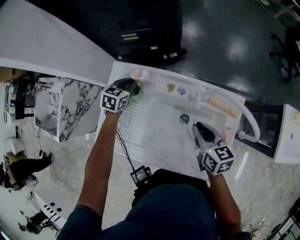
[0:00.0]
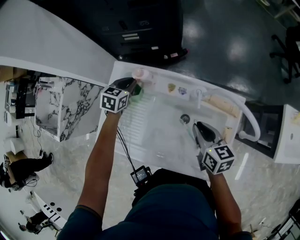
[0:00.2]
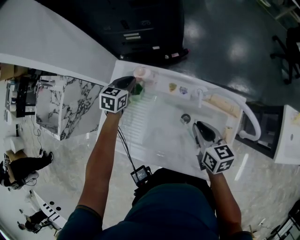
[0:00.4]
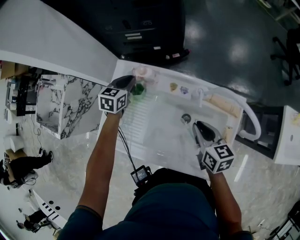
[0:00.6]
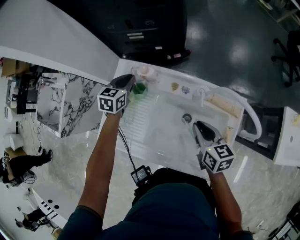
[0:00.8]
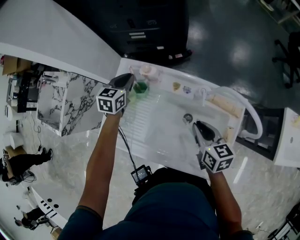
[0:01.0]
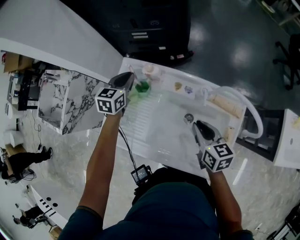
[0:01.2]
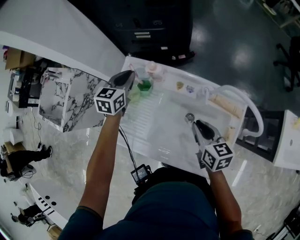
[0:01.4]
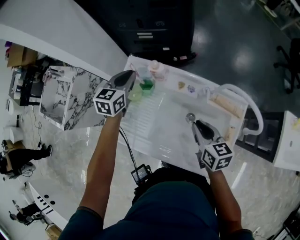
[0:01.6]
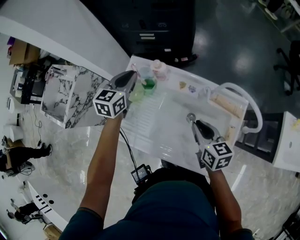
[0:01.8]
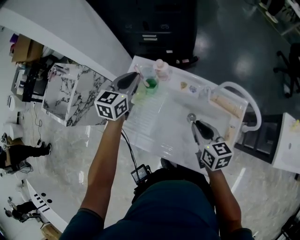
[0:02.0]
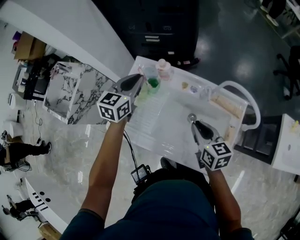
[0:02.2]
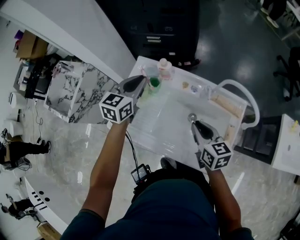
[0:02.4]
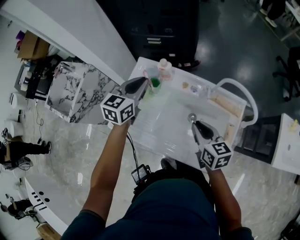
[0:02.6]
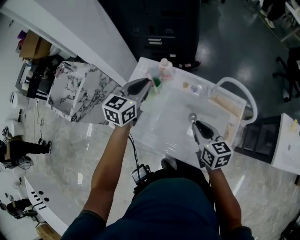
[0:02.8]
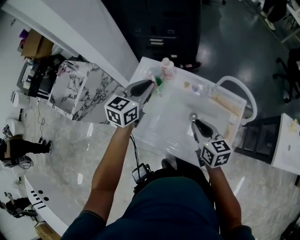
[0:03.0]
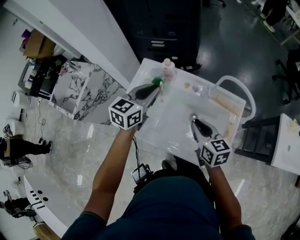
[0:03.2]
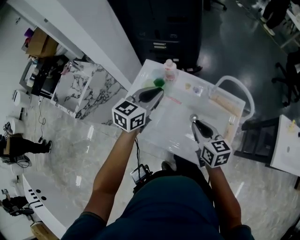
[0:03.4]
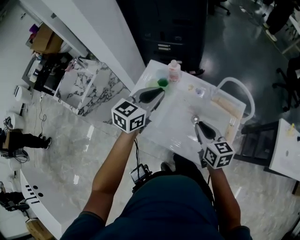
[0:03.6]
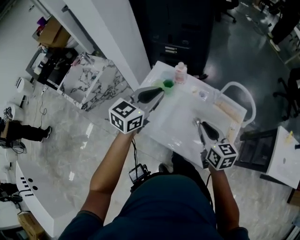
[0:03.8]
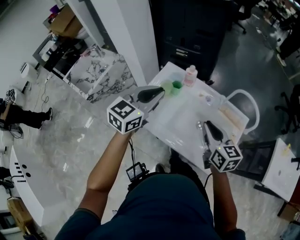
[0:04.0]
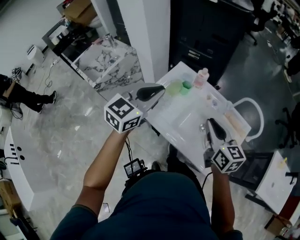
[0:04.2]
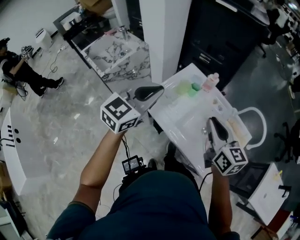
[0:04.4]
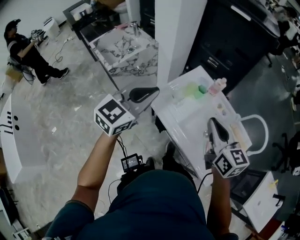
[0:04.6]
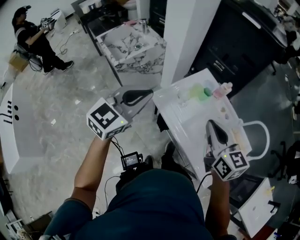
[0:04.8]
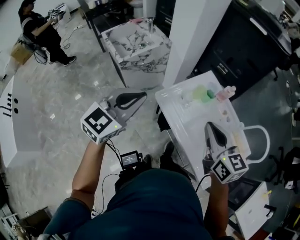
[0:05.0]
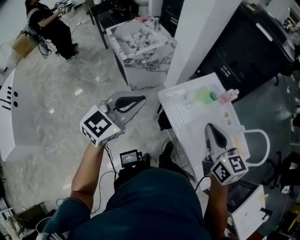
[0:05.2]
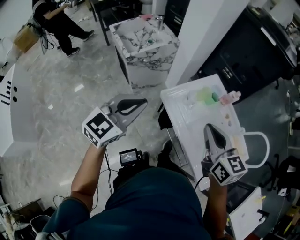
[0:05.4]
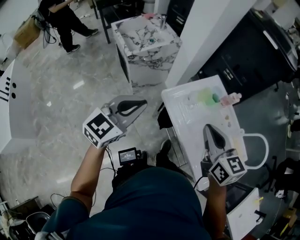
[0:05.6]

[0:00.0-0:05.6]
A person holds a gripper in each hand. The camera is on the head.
0:00.0 to 0:01.4: The left gripper travels upward by some 10 cm, and swivels about 20 degrees.
0:01.4 to 0:02.8: The left gripper moves backward and upward, roughly 15 cm. Meanwhile the right gripper shifts by roughly 5 cm.
0:02.8 to 0:04.2: The right gripper travels upward and to the left by approximately 15 cm, while the left gripper is displaced backward, upward and to the left by some 25 cm.
0:04.2 to 0:05.6: The left gripper shifts approximately 25 cm to the left and backward. The right gripper heads to the left, covering roughly 20 cm, and turns by some 30 degrees.

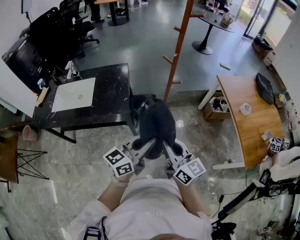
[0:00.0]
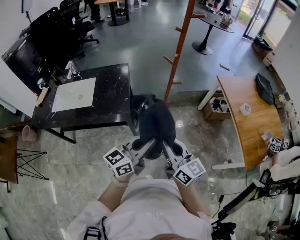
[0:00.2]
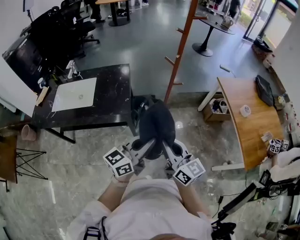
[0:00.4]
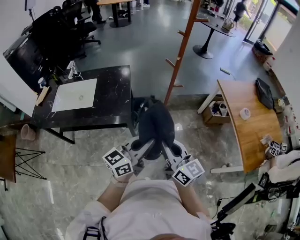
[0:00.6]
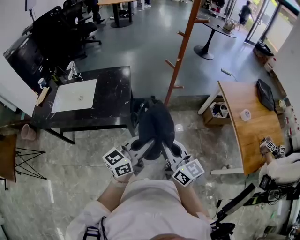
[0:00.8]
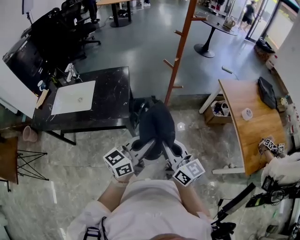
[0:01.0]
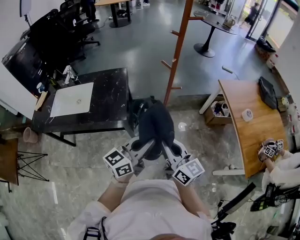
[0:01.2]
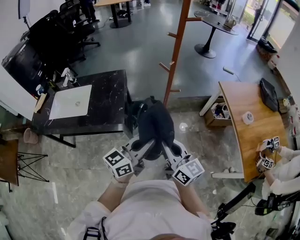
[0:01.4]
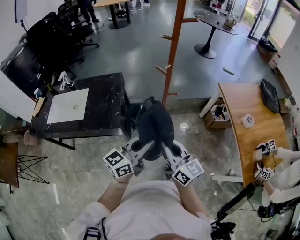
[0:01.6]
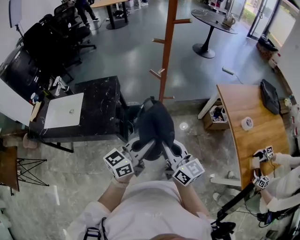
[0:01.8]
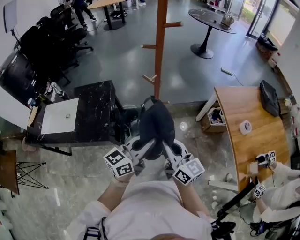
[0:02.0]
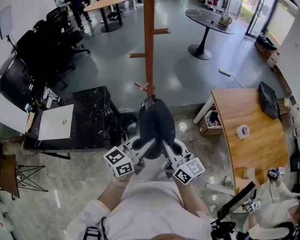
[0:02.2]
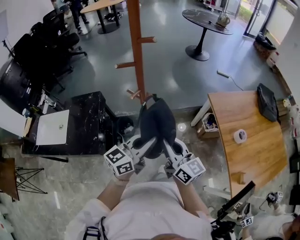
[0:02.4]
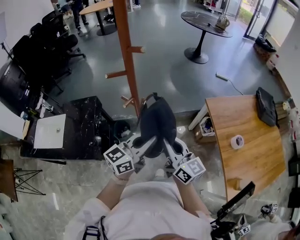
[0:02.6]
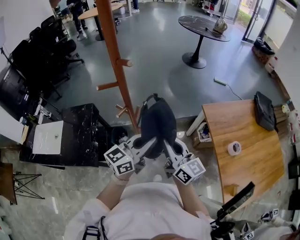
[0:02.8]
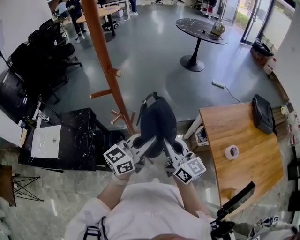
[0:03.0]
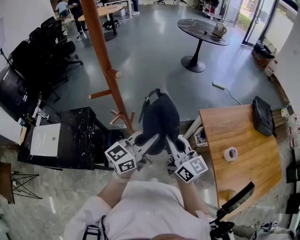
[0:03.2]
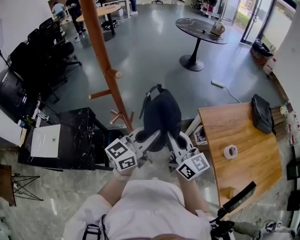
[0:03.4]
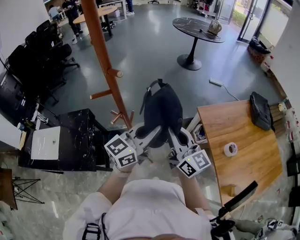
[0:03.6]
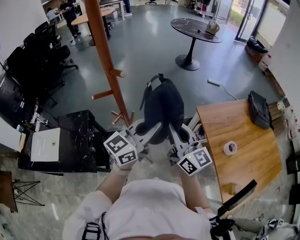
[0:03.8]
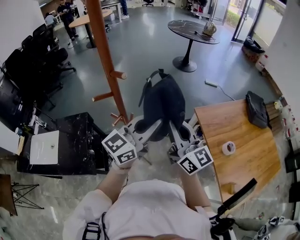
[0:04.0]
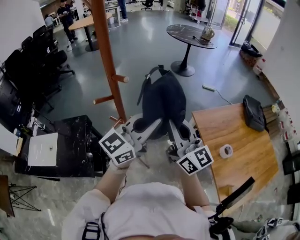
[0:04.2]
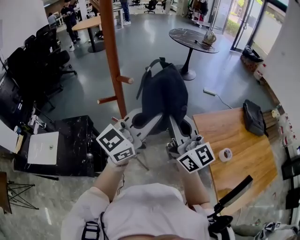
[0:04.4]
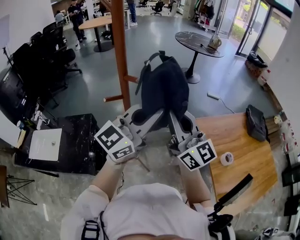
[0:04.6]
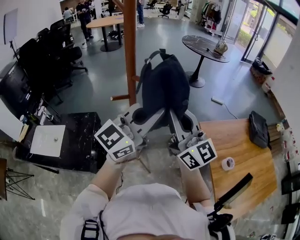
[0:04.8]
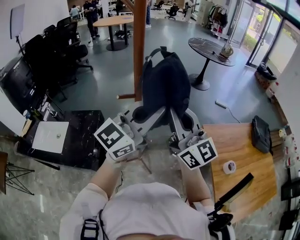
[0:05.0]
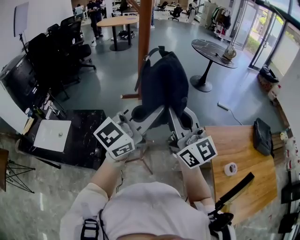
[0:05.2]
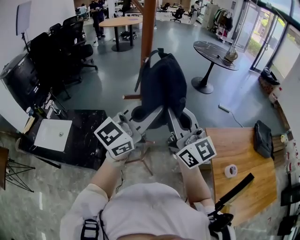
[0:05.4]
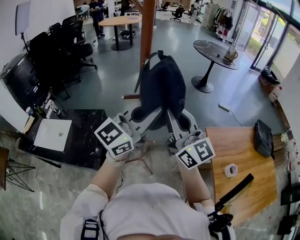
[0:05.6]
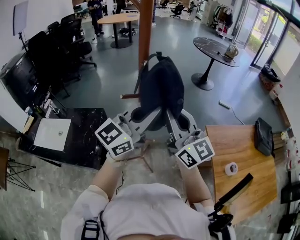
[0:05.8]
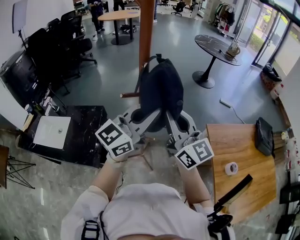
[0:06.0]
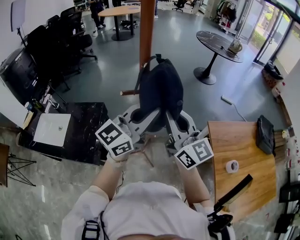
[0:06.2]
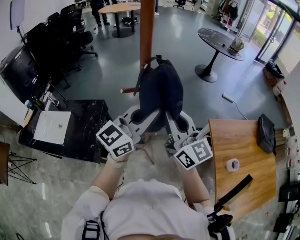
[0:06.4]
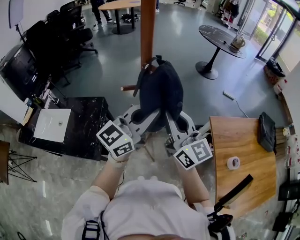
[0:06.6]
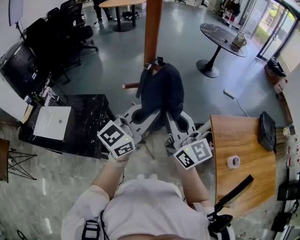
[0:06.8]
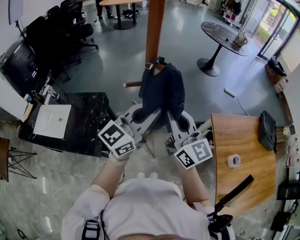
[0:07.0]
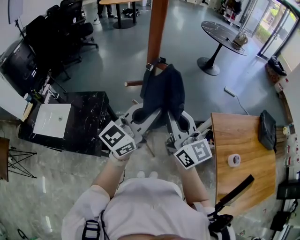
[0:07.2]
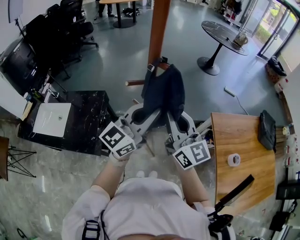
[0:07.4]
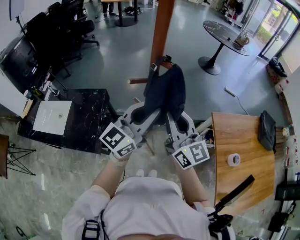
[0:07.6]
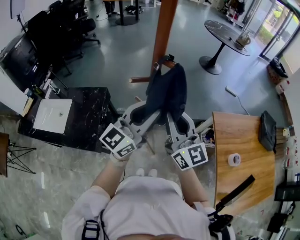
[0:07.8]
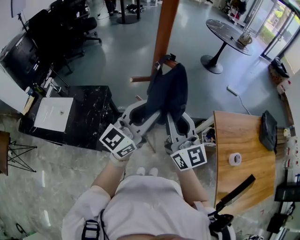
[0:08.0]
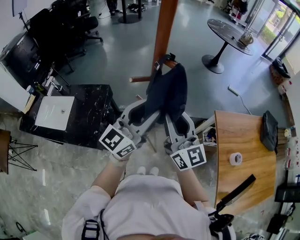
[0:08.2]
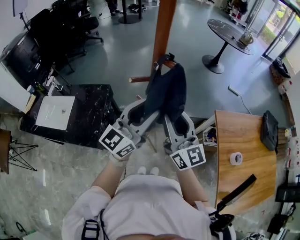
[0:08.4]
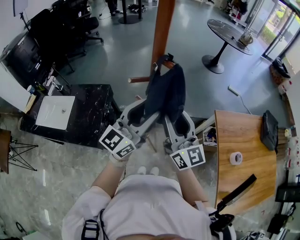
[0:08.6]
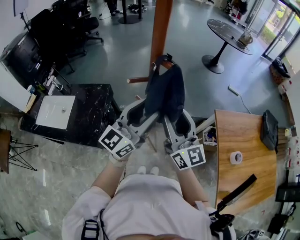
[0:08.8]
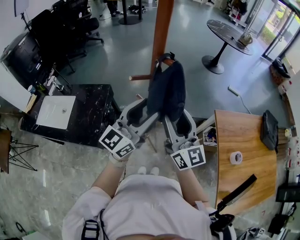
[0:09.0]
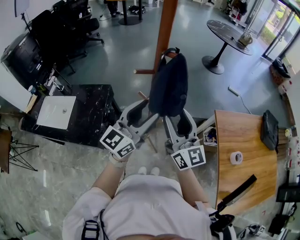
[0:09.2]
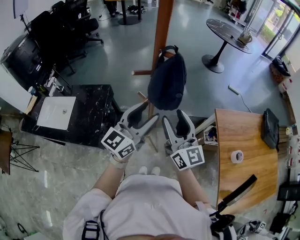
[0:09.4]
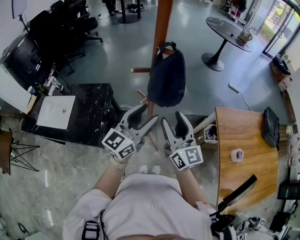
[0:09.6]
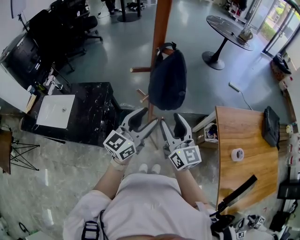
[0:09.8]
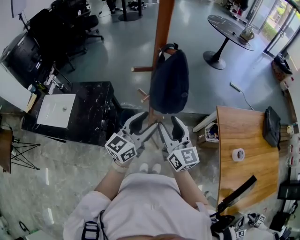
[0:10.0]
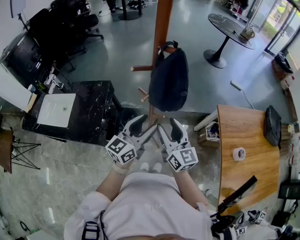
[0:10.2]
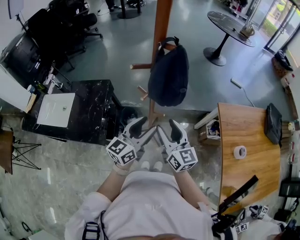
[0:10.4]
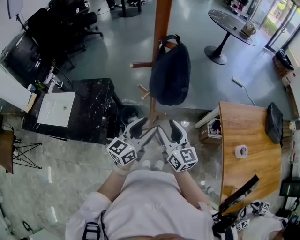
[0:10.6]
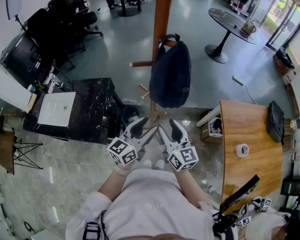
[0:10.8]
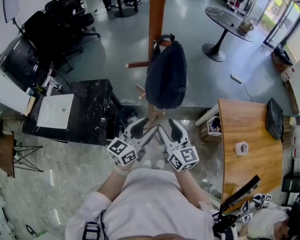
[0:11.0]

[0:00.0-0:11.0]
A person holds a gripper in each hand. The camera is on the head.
0:00.0 to 0:01.6: Both grippers travel together forward and to the right, about 15 cm.
0:01.6 to 0:03.2: The pair of grippers is taken forward and to the right, approximately 40 cm.
0:03.2 to 0:04.8: Both grippers travel together upward, some 20 cm. The left gripper turns by approximately 20 degrees, while the right gripper turns by roughly 20 degrees.
0:04.8 to 0:06.2: The two grippers go approximately 10 cm to the left and downward.
0:06.2 to 0:07.8: Both grippers travel together downward, about 5 cm.
0:07.8 to 0:09.4: The left gripper shifts by about 5 cm, and opens its fingers, while the right gripper ends up some 5 cm from where it was, and opens its fingers.
0:09.4 to 0:11.0: Both grippers travel together downward, roughly 15 cm.

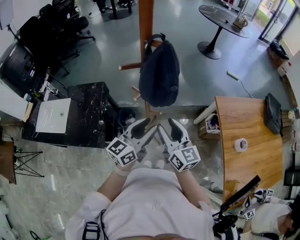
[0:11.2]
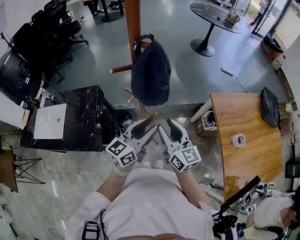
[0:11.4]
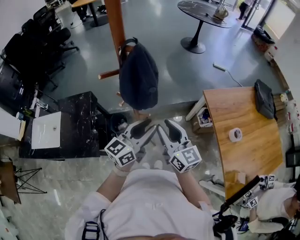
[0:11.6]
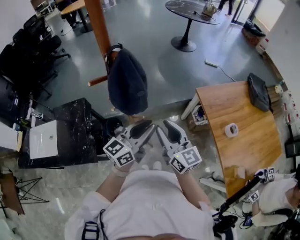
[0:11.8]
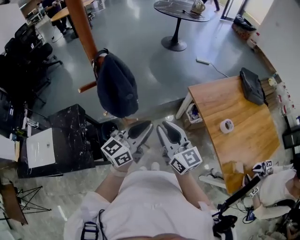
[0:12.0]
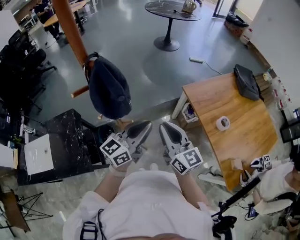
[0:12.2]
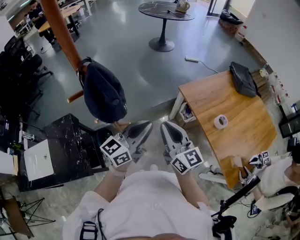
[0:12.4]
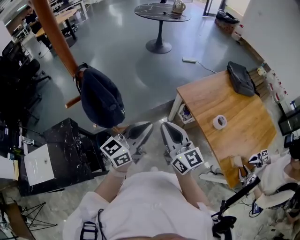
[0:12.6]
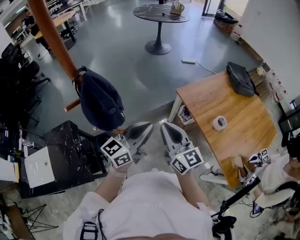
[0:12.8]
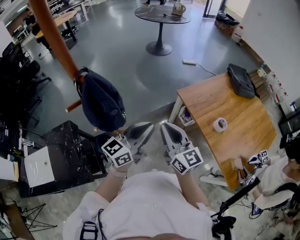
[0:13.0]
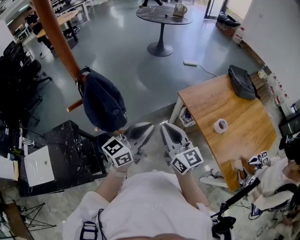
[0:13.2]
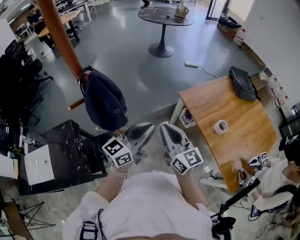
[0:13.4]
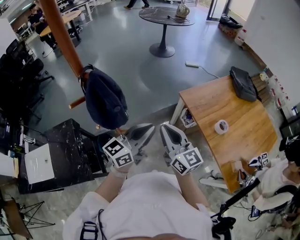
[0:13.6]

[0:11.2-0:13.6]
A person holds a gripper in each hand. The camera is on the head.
0:11.2 to 0:12.4: Both grippers travel together to the right and upward, about 15 cm. The left gripper turns by about 30 degrees, and closes, while the right gripper closes.
0:12.4 to 0:13.6: There are only small adjustments of the grippers.

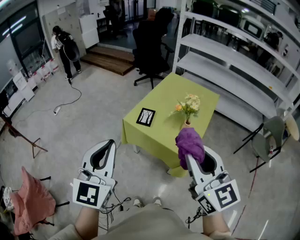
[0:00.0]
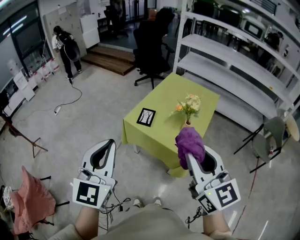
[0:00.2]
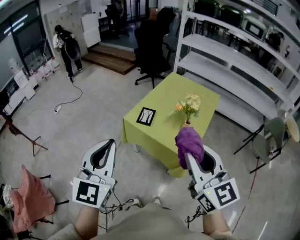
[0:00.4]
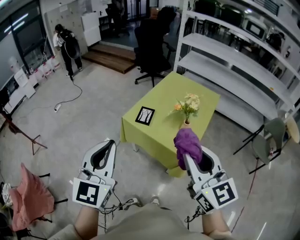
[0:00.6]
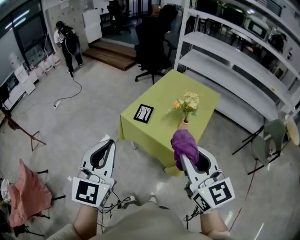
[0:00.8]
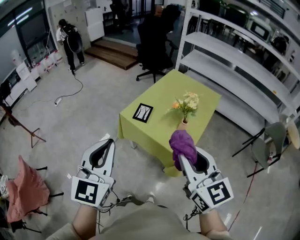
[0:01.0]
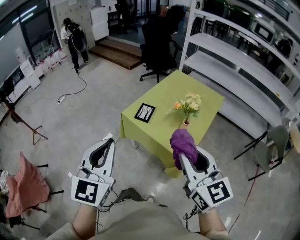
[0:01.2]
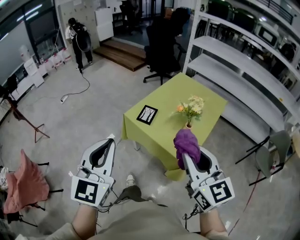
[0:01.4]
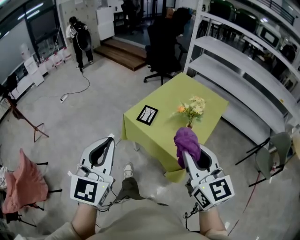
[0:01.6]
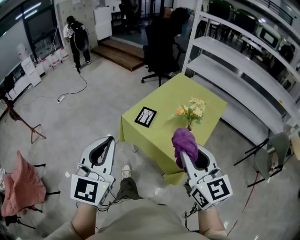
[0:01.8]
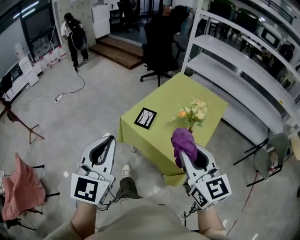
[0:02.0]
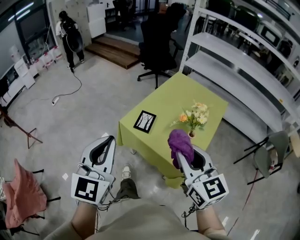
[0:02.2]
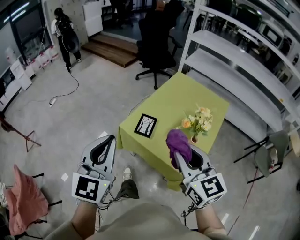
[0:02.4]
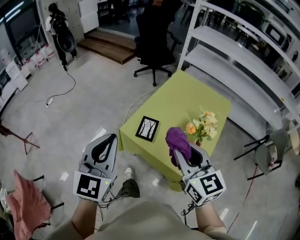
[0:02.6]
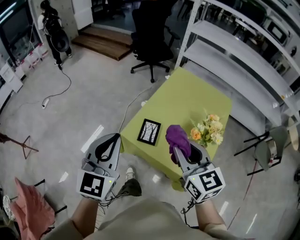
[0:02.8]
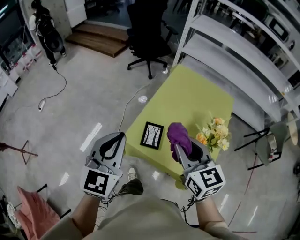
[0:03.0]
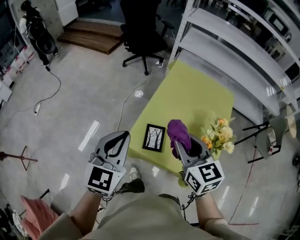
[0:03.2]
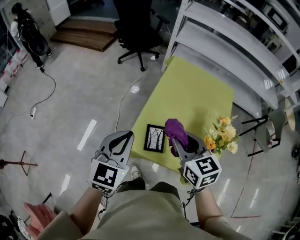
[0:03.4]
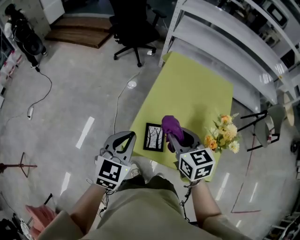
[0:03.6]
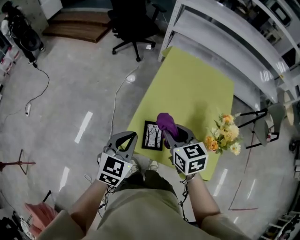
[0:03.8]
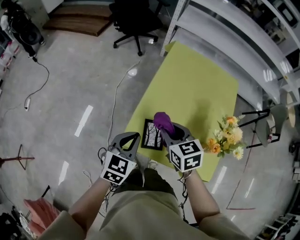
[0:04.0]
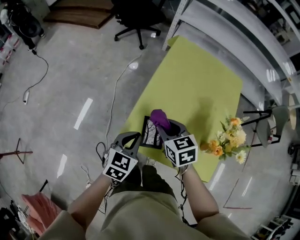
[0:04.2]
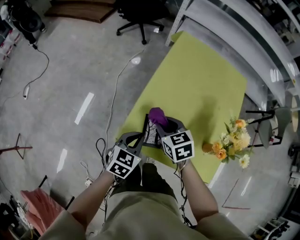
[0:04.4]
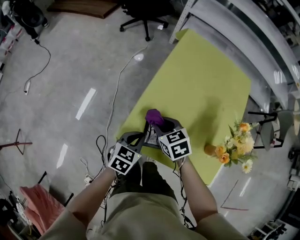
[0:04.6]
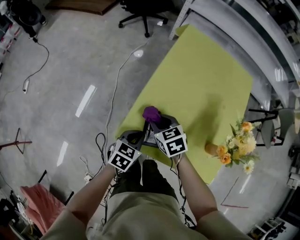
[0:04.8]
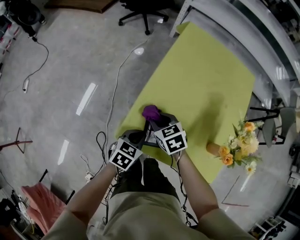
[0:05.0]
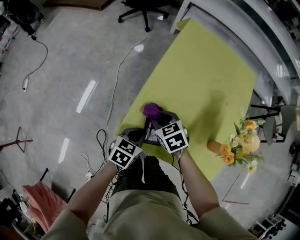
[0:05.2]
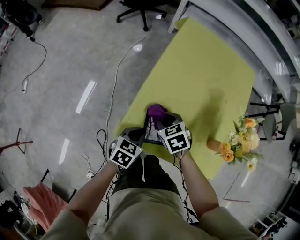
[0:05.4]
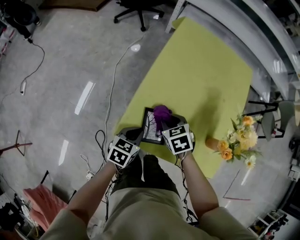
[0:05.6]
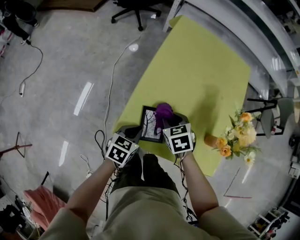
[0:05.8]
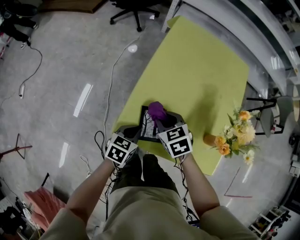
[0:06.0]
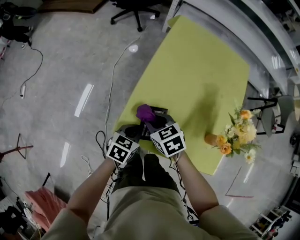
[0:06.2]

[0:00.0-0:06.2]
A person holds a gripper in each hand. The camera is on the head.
0:00.0 to 0:01.6: The left gripper moves approximately 5 cm, while the right gripper heads downward and forward, covering about 10 cm.
0:01.6 to 0:03.2: The two grippers go some 40 cm forward. The right gripper changes its angle by roughly 20 degrees. The left gripper swivels some 30 degrees.
0:03.2 to 0:04.6: The grippers both shift downward by roughly 30 cm. The left gripper changes its angle by some 40 degrees. Meanwhile the right gripper swivels roughly 30 degrees.
0:04.6 to 0:06.2: The right gripper goes to the right and returns, about 5 cm each way.
